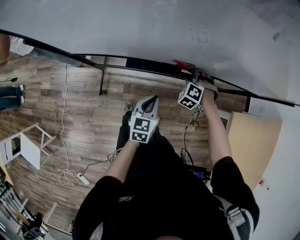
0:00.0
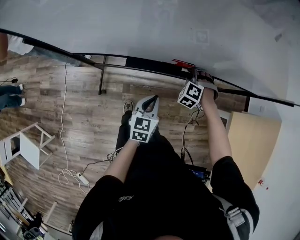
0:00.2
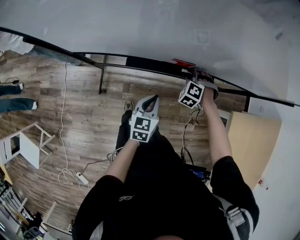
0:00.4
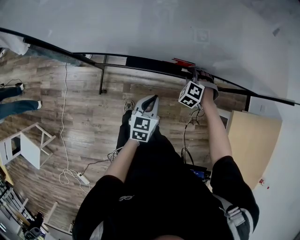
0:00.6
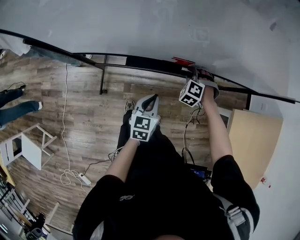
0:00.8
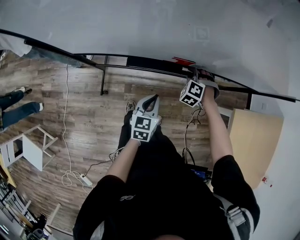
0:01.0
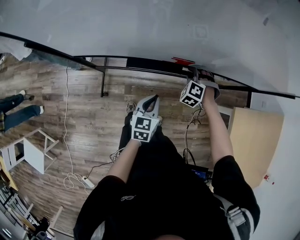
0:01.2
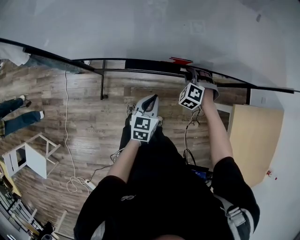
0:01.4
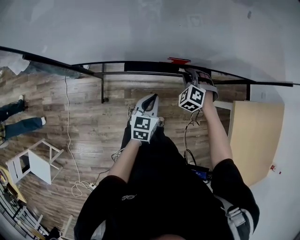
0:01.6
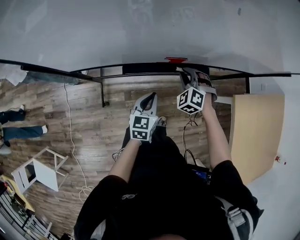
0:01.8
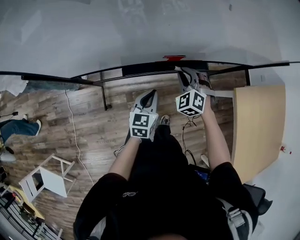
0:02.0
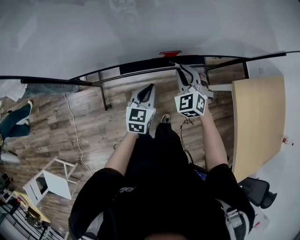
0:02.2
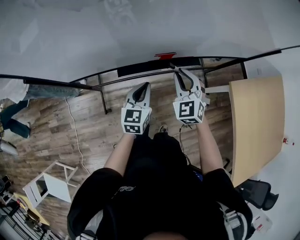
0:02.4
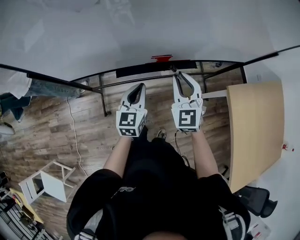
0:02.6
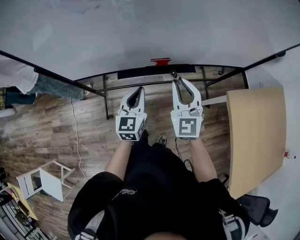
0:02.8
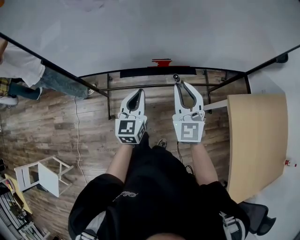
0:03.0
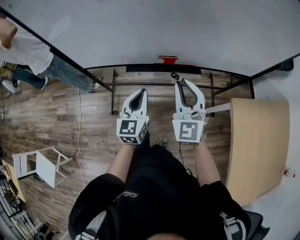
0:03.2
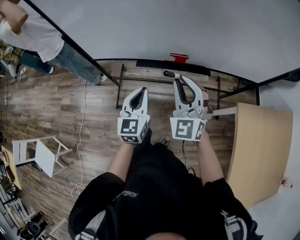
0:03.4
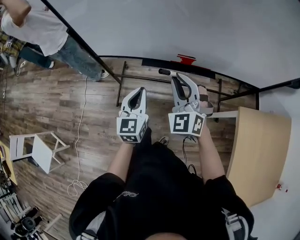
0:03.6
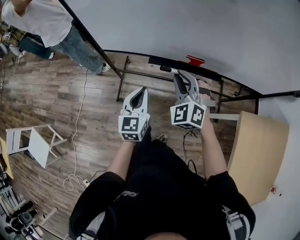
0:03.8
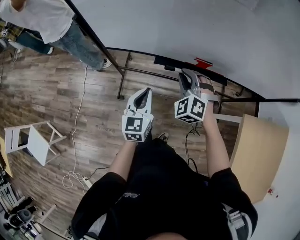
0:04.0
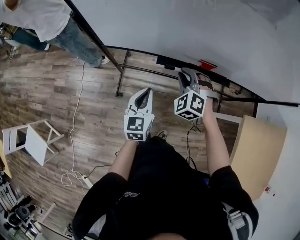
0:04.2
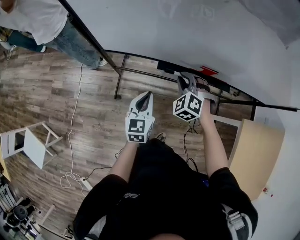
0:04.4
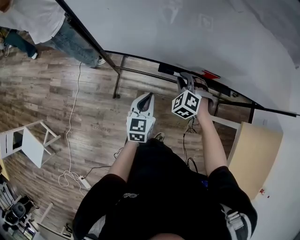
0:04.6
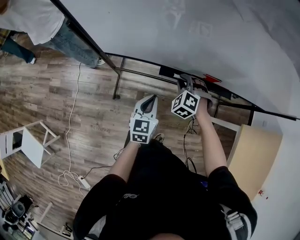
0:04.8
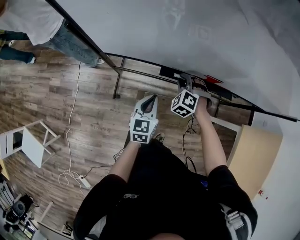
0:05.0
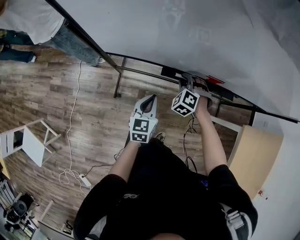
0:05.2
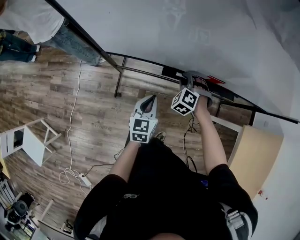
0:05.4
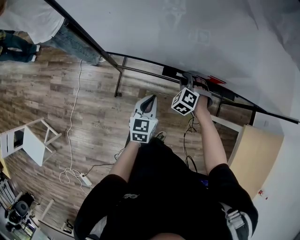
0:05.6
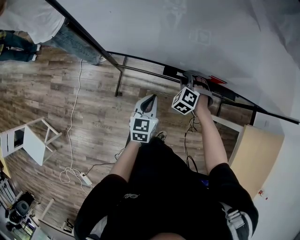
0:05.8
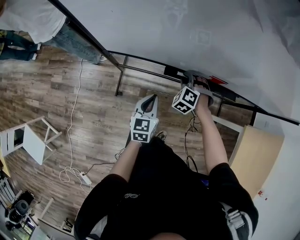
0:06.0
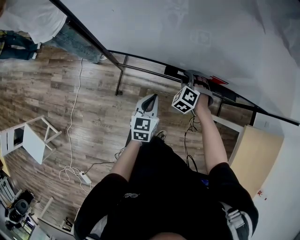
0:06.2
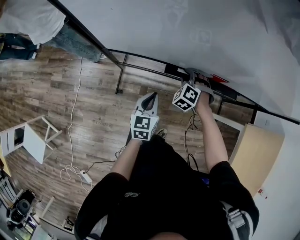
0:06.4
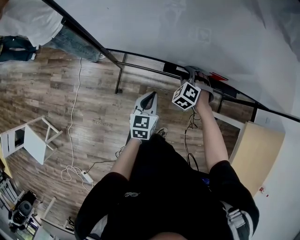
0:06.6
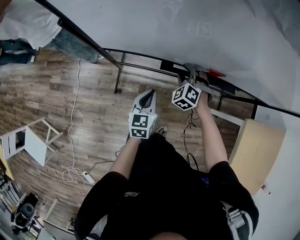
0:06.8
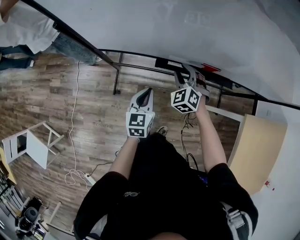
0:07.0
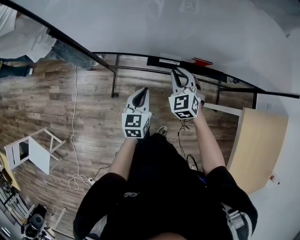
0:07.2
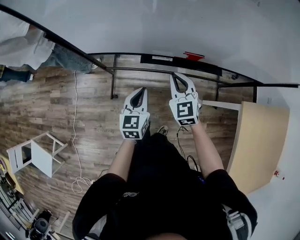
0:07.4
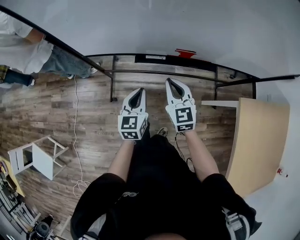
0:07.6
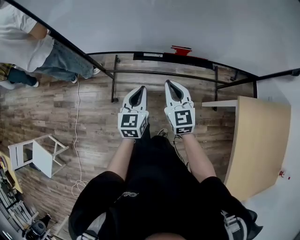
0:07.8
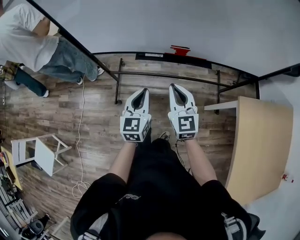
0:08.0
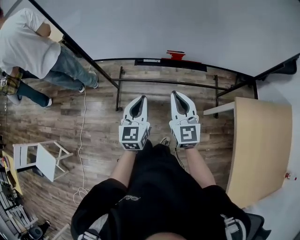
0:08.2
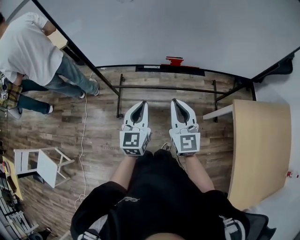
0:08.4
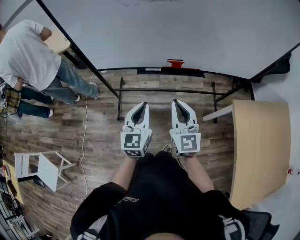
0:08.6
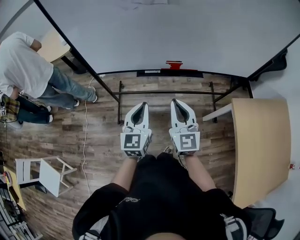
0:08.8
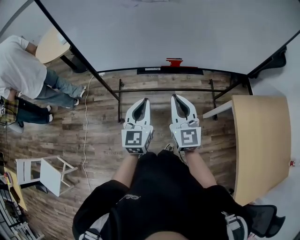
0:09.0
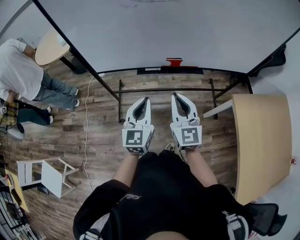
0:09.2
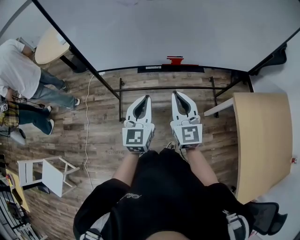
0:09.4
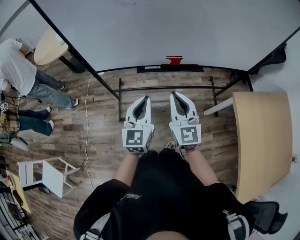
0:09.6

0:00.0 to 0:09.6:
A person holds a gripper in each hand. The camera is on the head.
0:00.0 to 0:01.6: The right gripper changes place by roughly 5 cm.
0:01.6 to 0:03.2: The right gripper goes approximately 30 cm upward and backward, and angles its fingers upward, by roughly 50 degrees; the left gripper travels upward by about 15 cm, and changes its angle by approximately 20 degrees.
0:03.2 to 0:04.8: The left gripper is displaced downward, to the left and forward by about 25 cm; the right gripper travels downward, forward and to the left by about 35 cm, and tilts its fingers roughly 50 degrees downward.
0:04.8 to 0:06.4: The right gripper shifts by some 5 cm.
0:06.4 to 0:08.0: The left gripper goes some 25 cm upward, backward and to the right. The right gripper goes roughly 35 cm backward, upward and to the right, and tips its fingers upward by some 40 degrees.
0:08.0 to 0:09.6: The grippers both shift upward and backward by about 10 cm.

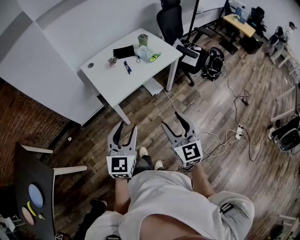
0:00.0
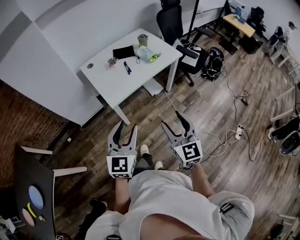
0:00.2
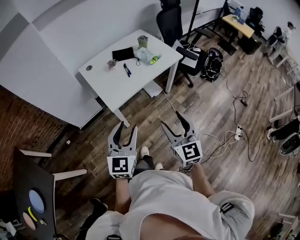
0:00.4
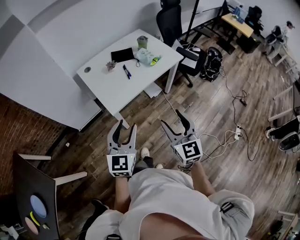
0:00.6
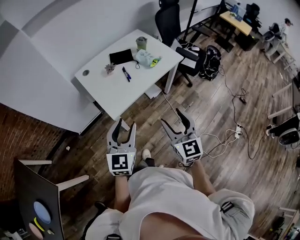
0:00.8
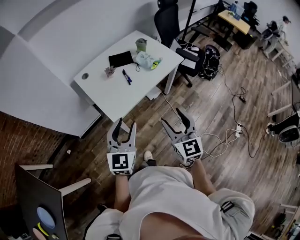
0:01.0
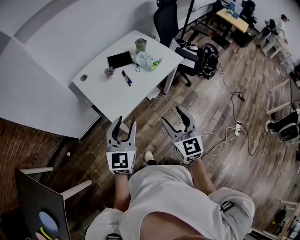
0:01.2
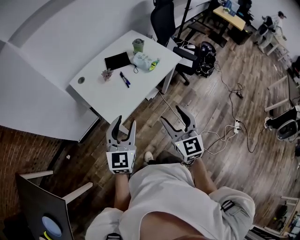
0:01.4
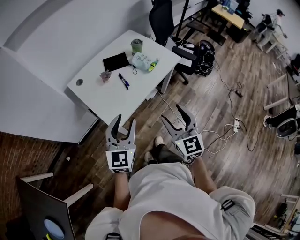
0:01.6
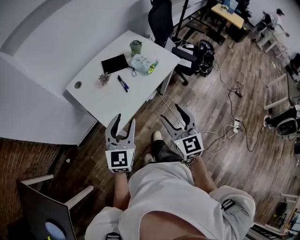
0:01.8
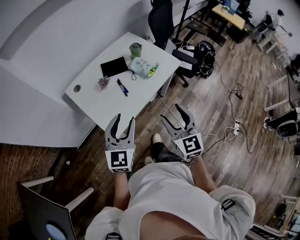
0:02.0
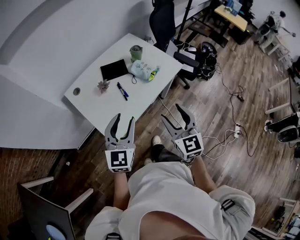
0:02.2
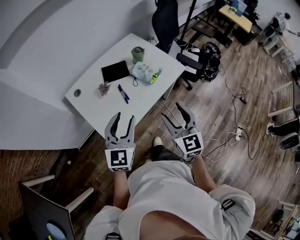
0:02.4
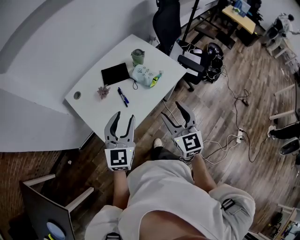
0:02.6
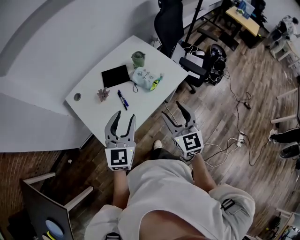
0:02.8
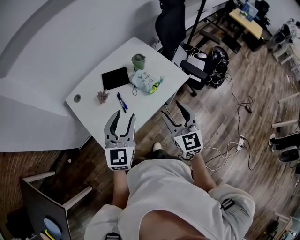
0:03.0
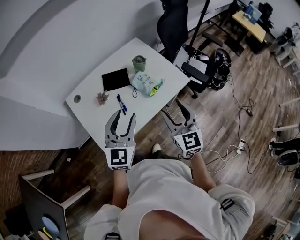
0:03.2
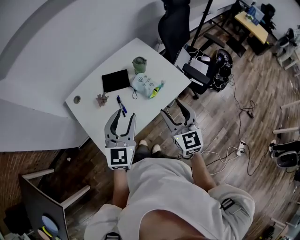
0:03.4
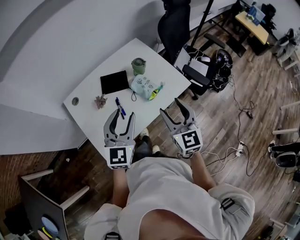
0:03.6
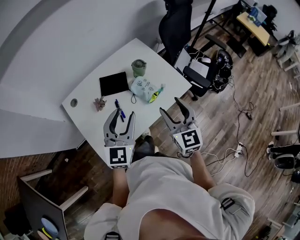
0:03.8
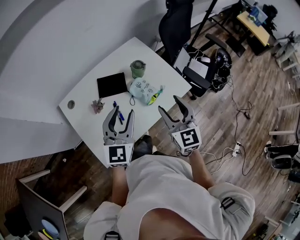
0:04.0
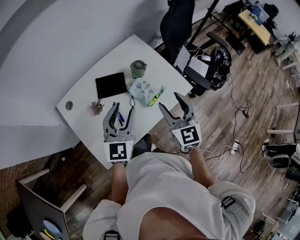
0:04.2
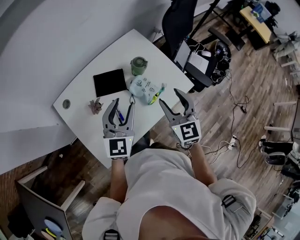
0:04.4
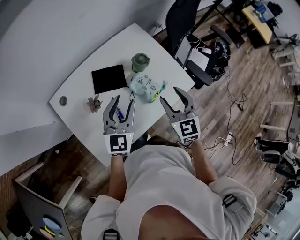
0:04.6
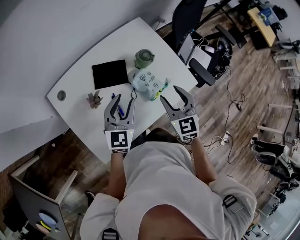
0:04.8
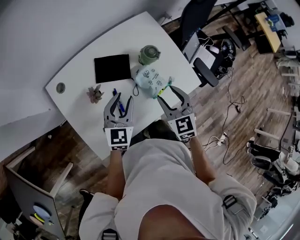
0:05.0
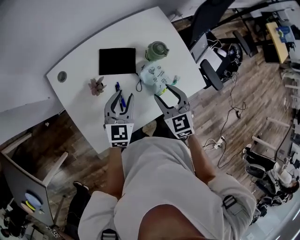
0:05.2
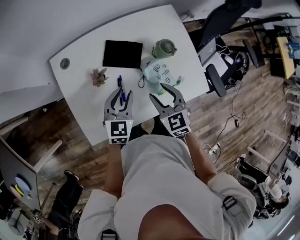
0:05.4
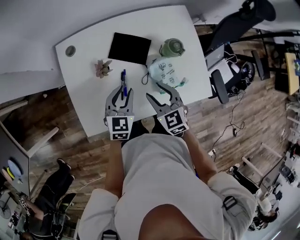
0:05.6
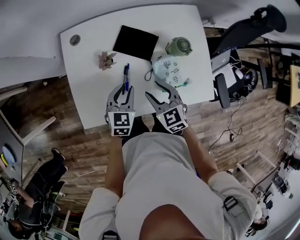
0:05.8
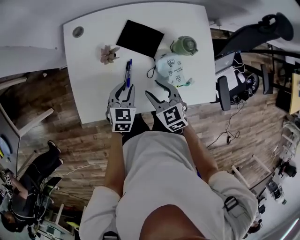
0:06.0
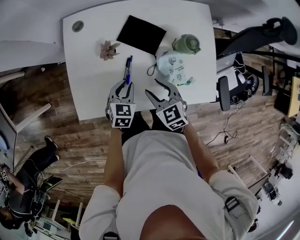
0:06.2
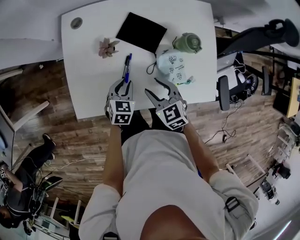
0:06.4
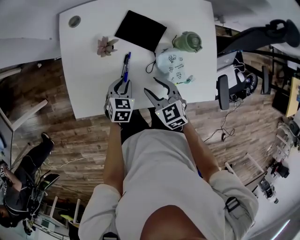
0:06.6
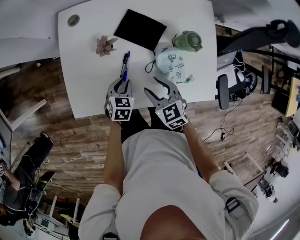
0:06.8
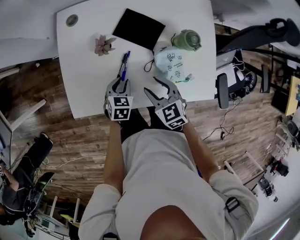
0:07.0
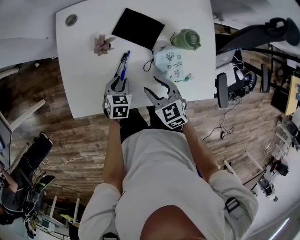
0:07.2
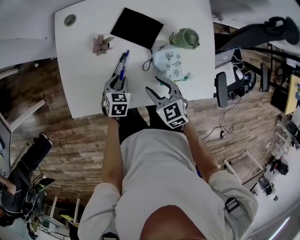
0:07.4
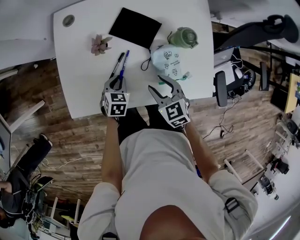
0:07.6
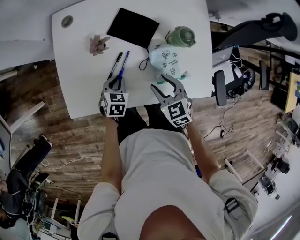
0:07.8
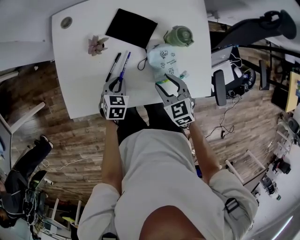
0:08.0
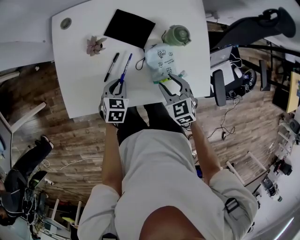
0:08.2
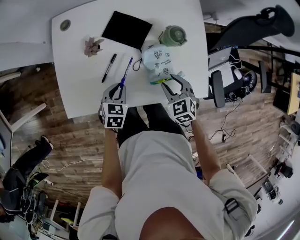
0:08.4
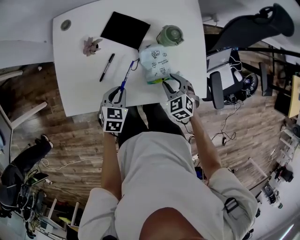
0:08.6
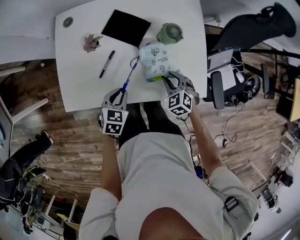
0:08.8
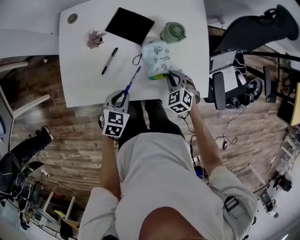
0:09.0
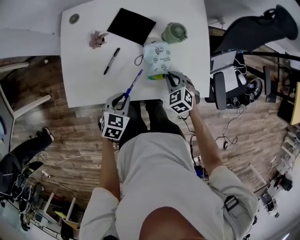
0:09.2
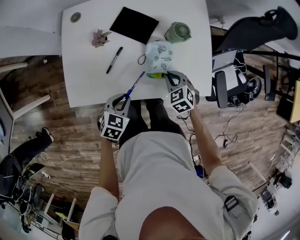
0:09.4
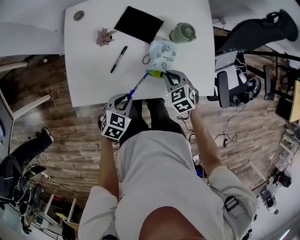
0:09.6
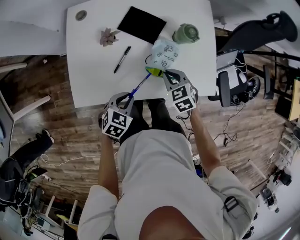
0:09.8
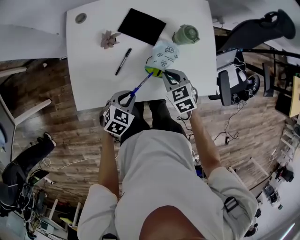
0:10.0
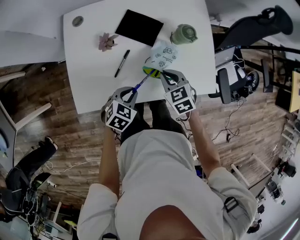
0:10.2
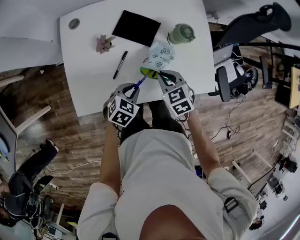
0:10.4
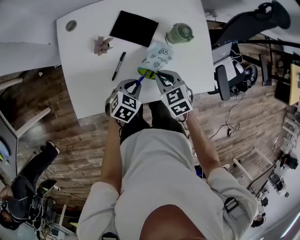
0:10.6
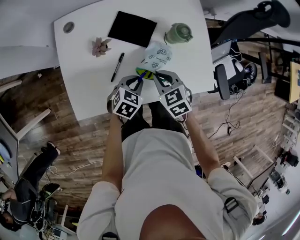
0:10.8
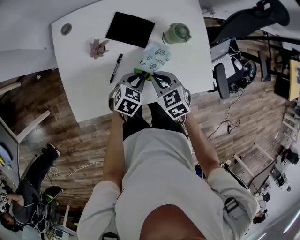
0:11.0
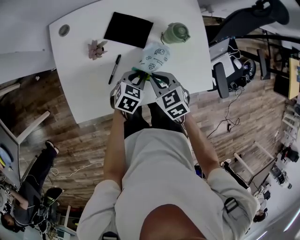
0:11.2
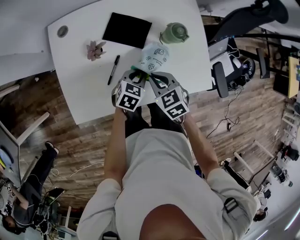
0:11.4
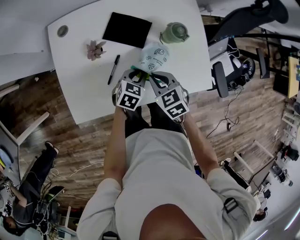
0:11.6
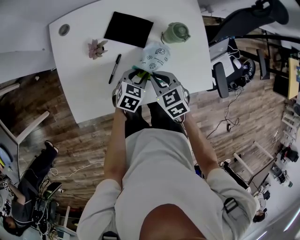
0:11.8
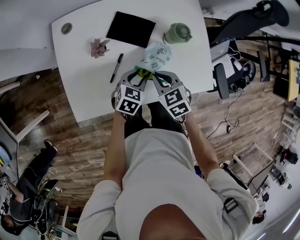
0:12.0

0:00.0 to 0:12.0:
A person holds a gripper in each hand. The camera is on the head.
0:00.0 to 0:01.6: The grippers both shift forward by about 20 cm.
0:01.6 to 0:03.0: The two grippers go roughly 20 cm forward.
0:03.0 to 0:04.4: The grippers both shift forward by about 20 cm.
0:04.4 to 0:06.0: The two grippers go approximately 20 cm downward. The right gripper swivels about 50 degrees, while the left gripper tilts its fingers about 30 degrees downward, and closes its fingers.
0:06.0 to 0:07.6: The left gripper travels downward by about 10 cm.
0:07.6 to 0:09.0: The left gripper goes some 15 cm backward, upward and to the right. Meanwhile the right gripper travels to the right and downward by roughly 15 cm, swivels about 20 degrees, and closes up.
0:09.0 to 0:10.4: The right gripper travels to the left and upward by some 15 cm, and swivels approximately 20 degrees.
0:10.4 to 0:12.0: The left gripper goes about 5 cm forward.

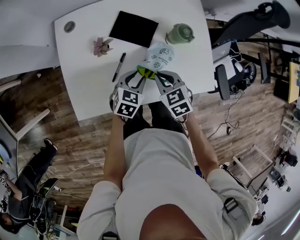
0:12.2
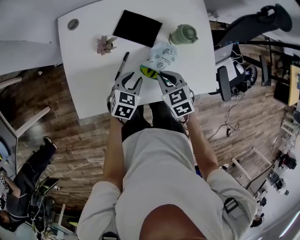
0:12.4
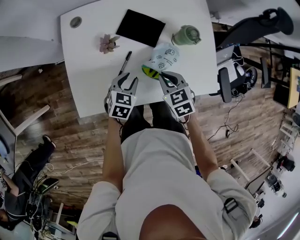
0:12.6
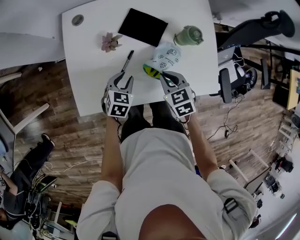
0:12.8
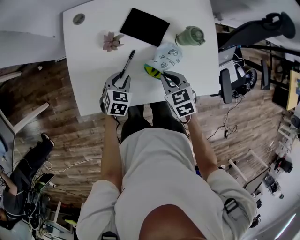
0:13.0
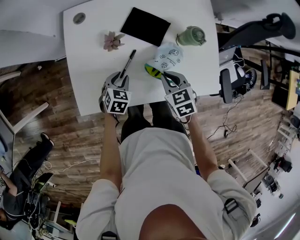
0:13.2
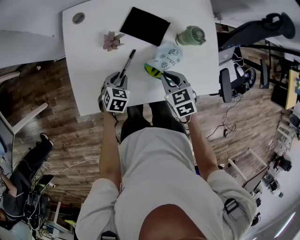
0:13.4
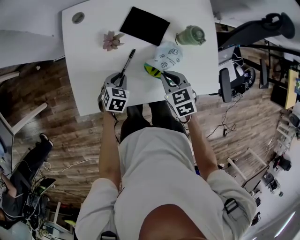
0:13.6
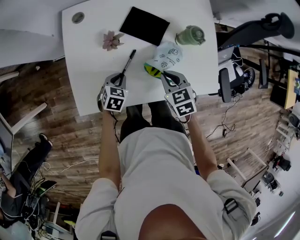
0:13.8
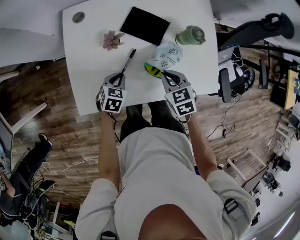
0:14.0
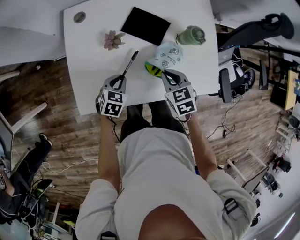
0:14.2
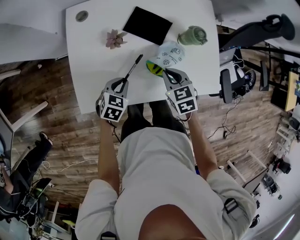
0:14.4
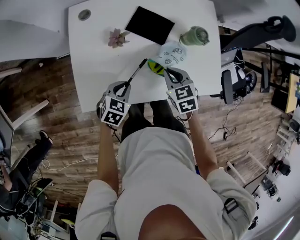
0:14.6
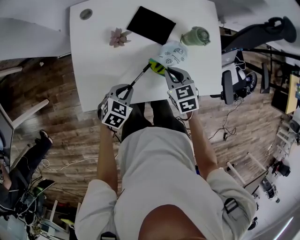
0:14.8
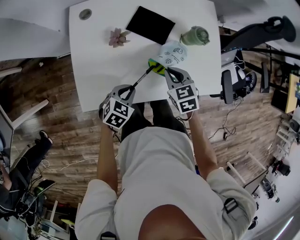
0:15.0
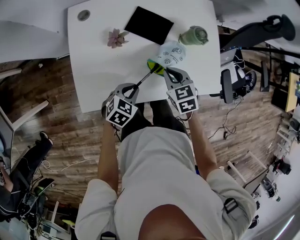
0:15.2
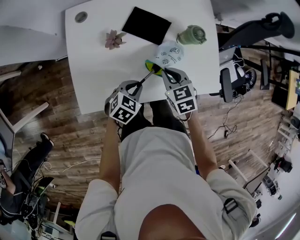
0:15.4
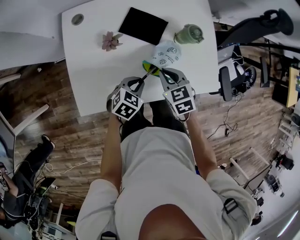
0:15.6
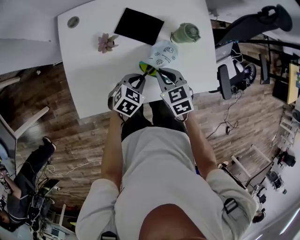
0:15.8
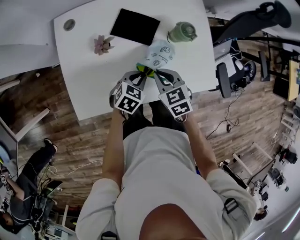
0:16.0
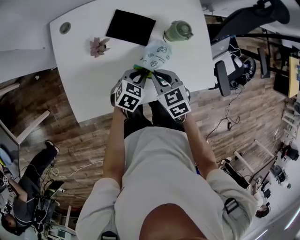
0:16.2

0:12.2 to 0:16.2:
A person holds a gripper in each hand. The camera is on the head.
0:12.2 to 0:13.6: The left gripper goes some 15 cm to the left and downward.
0:13.6 to 0:14.8: The left gripper moves backward and upward, approximately 10 cm.
0:14.8 to 0:16.2: The left gripper heads to the right and forward, covering some 15 cm.
